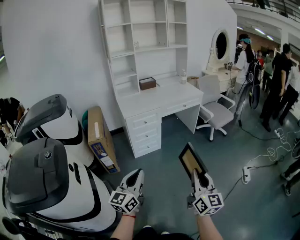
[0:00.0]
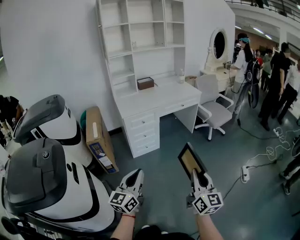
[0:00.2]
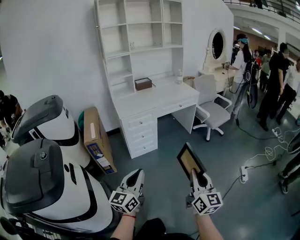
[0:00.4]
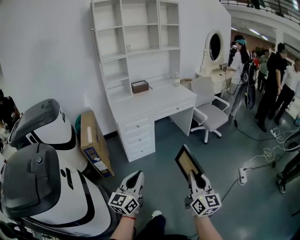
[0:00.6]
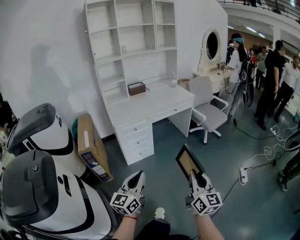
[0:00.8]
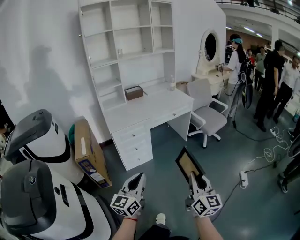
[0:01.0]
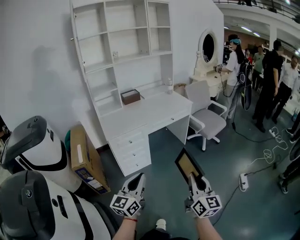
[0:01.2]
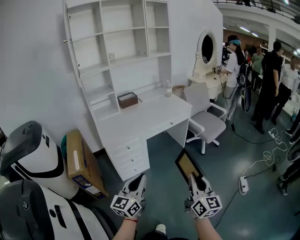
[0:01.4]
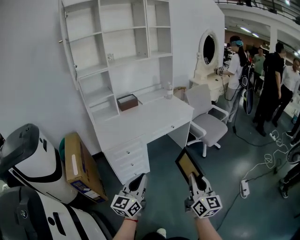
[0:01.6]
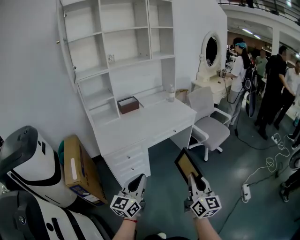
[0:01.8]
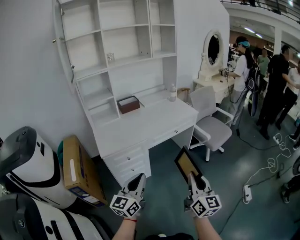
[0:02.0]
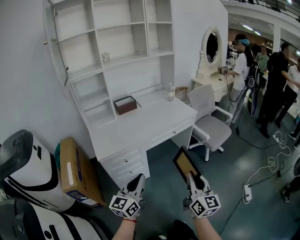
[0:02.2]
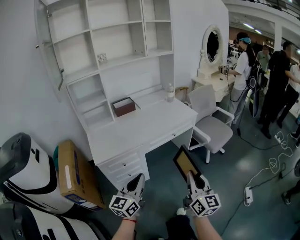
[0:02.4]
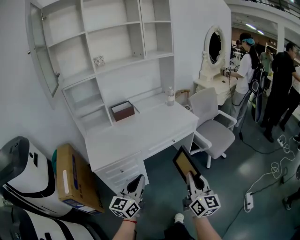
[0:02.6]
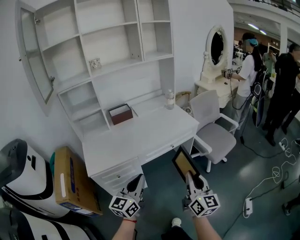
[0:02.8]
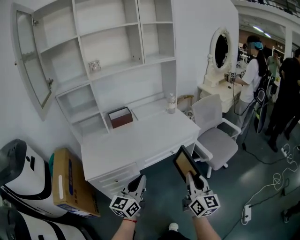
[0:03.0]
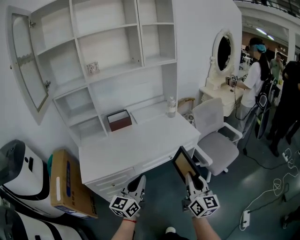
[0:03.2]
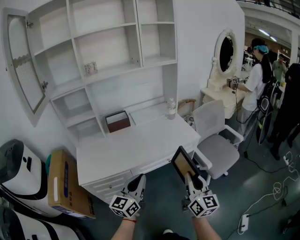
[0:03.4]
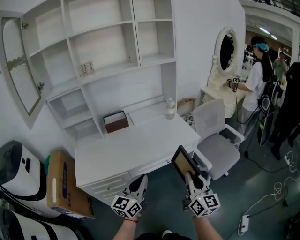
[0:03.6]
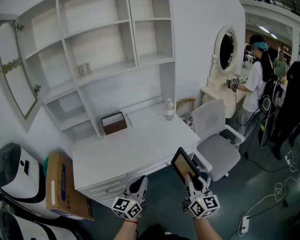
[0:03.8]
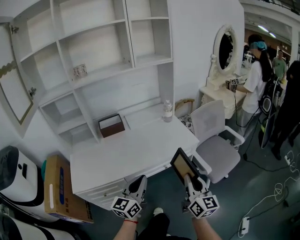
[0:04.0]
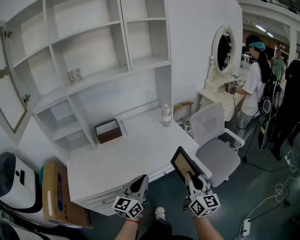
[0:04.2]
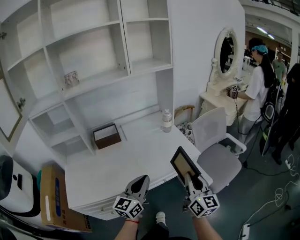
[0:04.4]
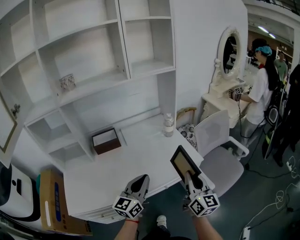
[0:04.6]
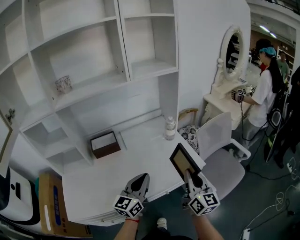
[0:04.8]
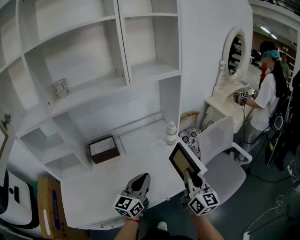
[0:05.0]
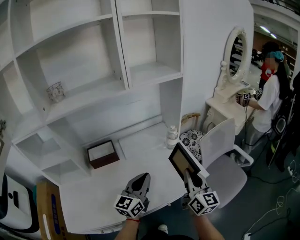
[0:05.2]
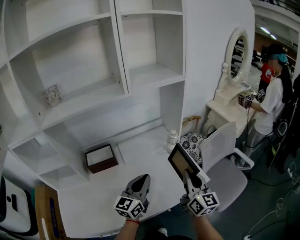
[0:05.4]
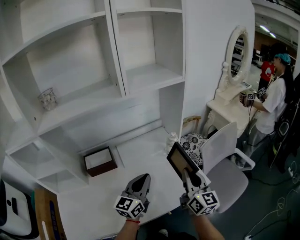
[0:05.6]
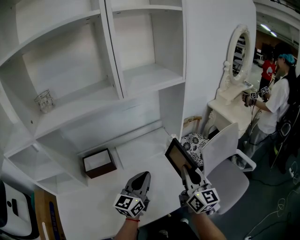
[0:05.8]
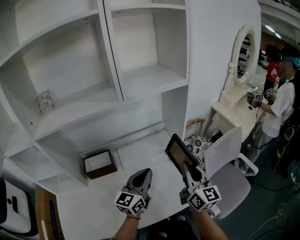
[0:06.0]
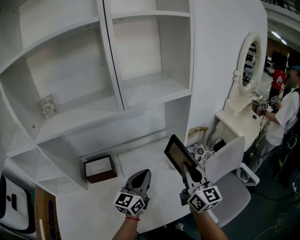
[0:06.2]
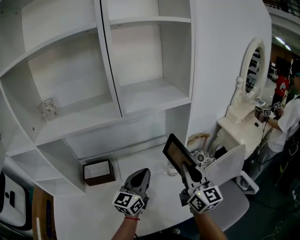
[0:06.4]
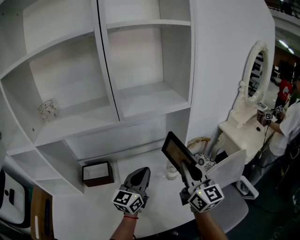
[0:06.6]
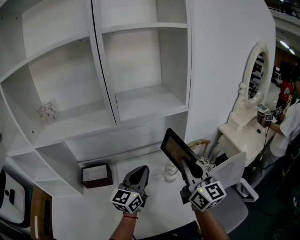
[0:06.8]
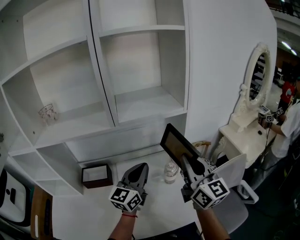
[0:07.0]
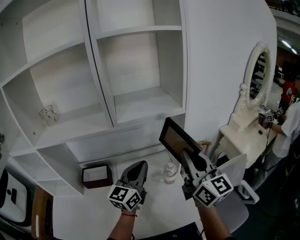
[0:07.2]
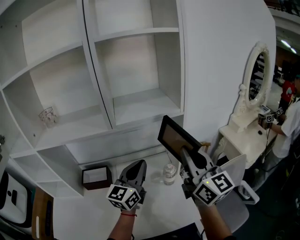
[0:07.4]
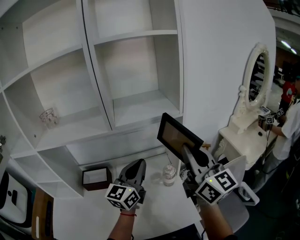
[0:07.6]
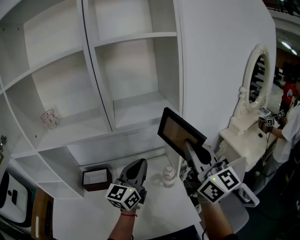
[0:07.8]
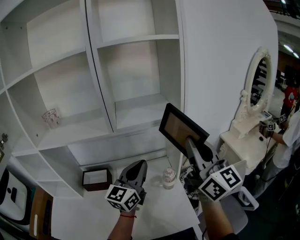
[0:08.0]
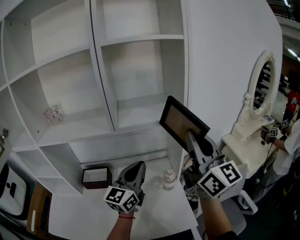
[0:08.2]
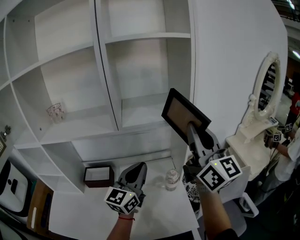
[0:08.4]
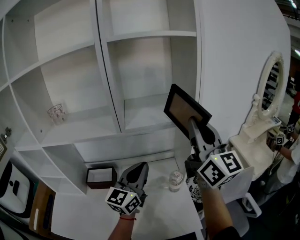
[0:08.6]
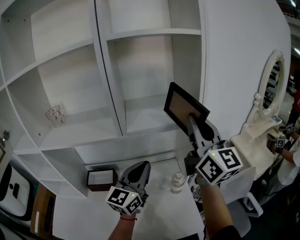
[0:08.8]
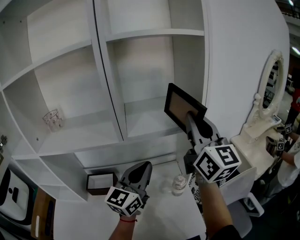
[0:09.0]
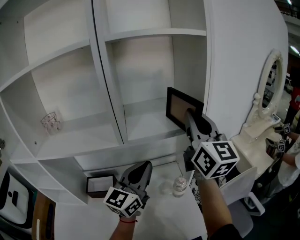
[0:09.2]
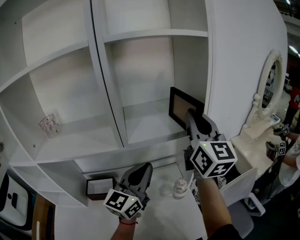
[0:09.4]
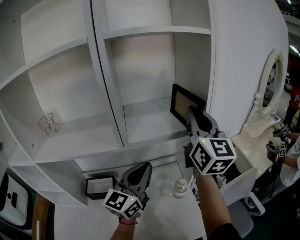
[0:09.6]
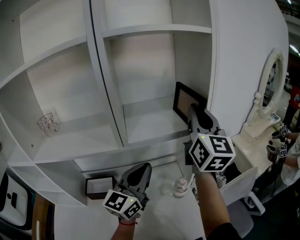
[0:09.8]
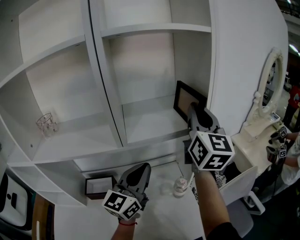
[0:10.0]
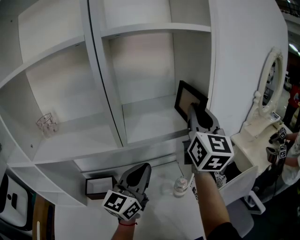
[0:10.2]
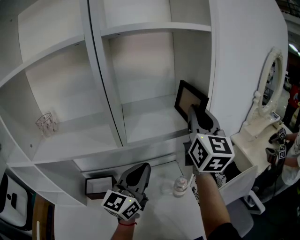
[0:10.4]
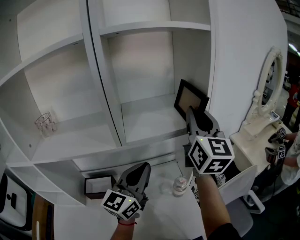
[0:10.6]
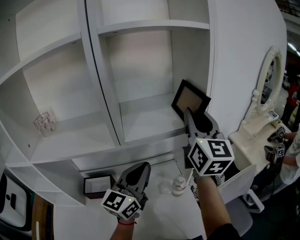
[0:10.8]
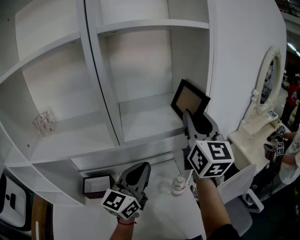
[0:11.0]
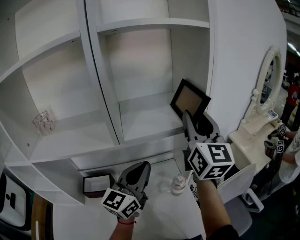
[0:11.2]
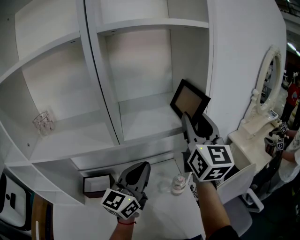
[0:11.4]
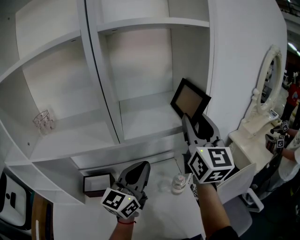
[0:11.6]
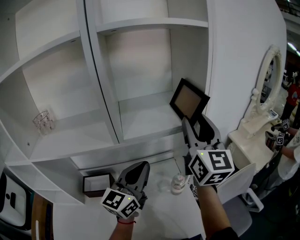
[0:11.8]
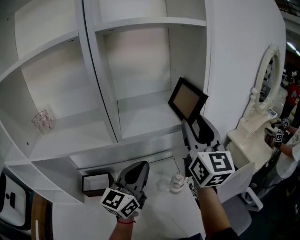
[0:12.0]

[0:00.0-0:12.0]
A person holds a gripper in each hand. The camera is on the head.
0:00.0 to 0:01.6: Both grippers move forward, roughly 30 cm.
0:01.6 to 0:03.0: Both grippers move forward, some 30 cm.
0:03.0 to 0:04.4: Both grippers travel together forward, roughly 25 cm.
0:04.4 to 0:06.0: Both grippers travel together forward, some 30 cm.
0:06.0 to 0:07.6: The right gripper travels upward and forward by some 20 cm, and rotates roughly 20 degrees, while the left gripper moves upward, forward and to the right, approximately 15 cm.
0:07.6 to 0:09.0: The right gripper shifts some 15 cm forward and upward.
0:09.0 to 0:10.4: The right gripper is displaced forward by some 5 cm.
0:10.4 to 0:12.0: The right gripper changes place by about 5 cm, and opens.

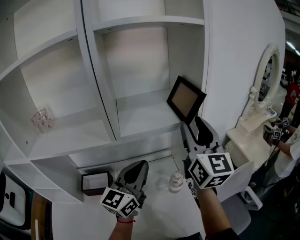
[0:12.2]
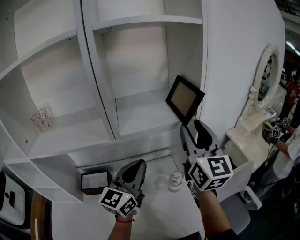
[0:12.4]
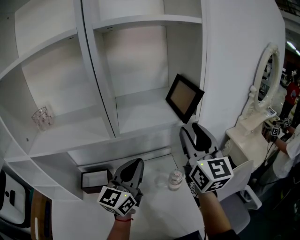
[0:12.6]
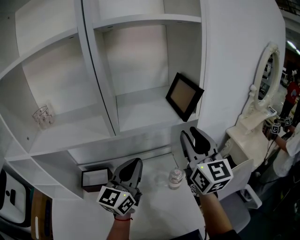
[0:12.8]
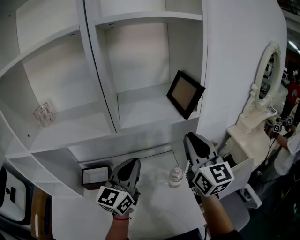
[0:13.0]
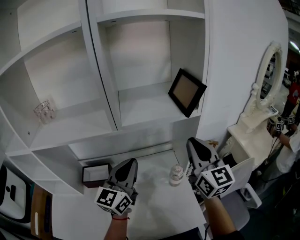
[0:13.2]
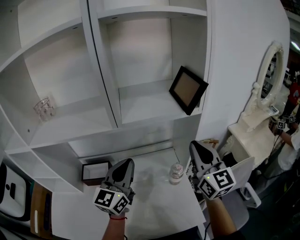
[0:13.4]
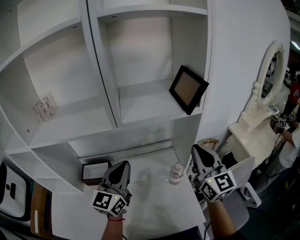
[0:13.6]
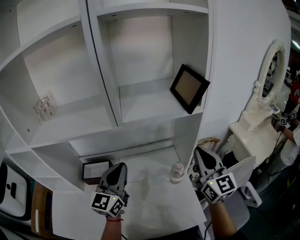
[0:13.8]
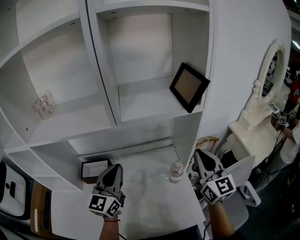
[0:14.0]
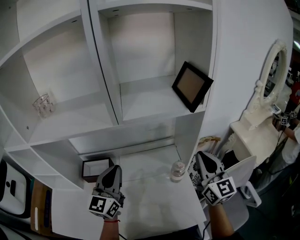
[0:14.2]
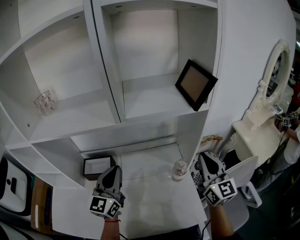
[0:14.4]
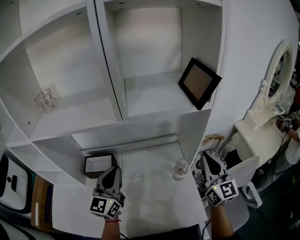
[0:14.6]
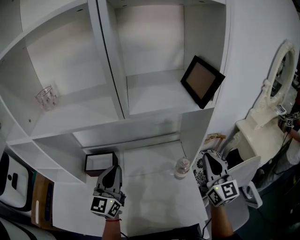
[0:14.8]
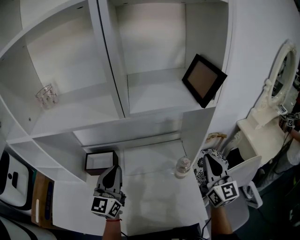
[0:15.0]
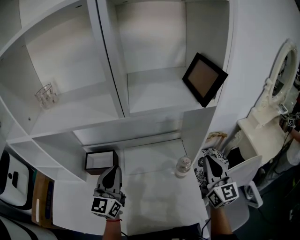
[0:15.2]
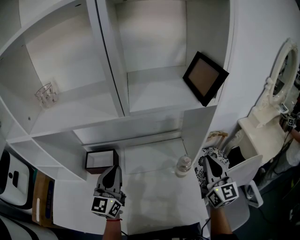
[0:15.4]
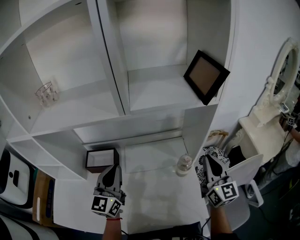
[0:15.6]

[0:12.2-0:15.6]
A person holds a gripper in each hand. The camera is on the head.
0:12.2 to 0:13.8: The left gripper heads to the left and downward, covering roughly 10 cm. Meanwhile the right gripper is displaced downward by roughly 15 cm, and closes.
0:13.8 to 0:15.6: The left gripper heads to the left, covering some 5 cm. Meanwhile the right gripper goes approximately 10 cm downward.

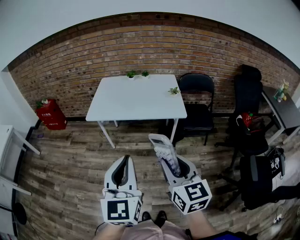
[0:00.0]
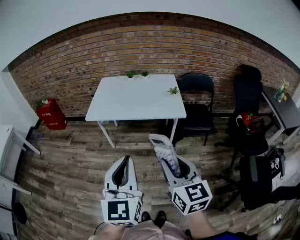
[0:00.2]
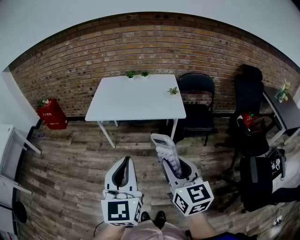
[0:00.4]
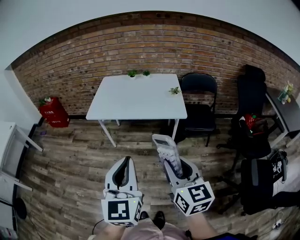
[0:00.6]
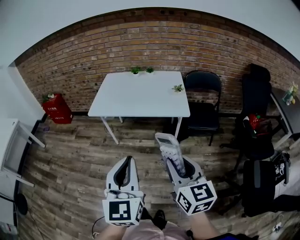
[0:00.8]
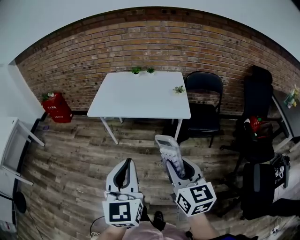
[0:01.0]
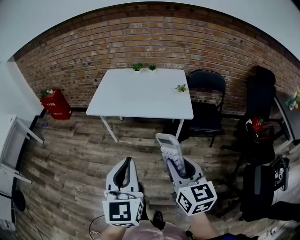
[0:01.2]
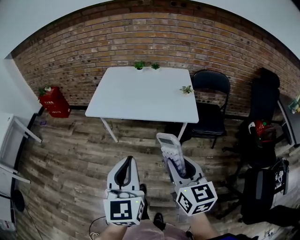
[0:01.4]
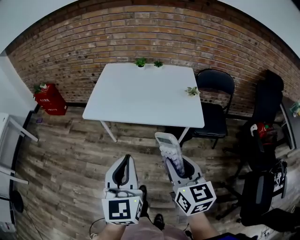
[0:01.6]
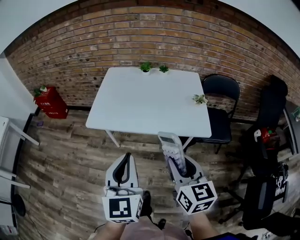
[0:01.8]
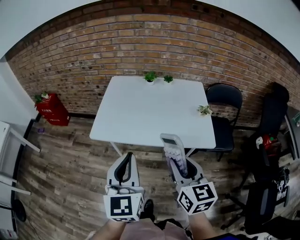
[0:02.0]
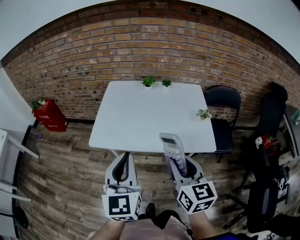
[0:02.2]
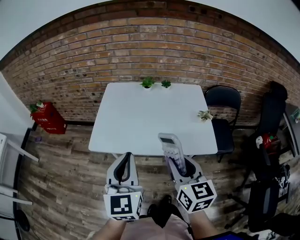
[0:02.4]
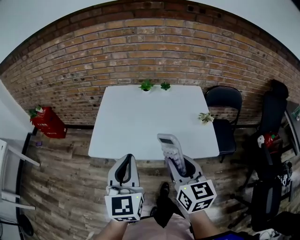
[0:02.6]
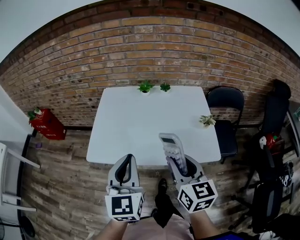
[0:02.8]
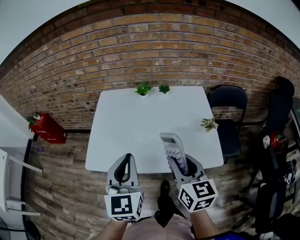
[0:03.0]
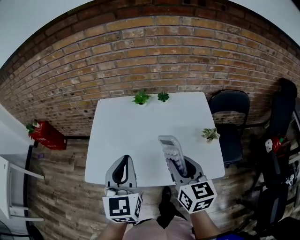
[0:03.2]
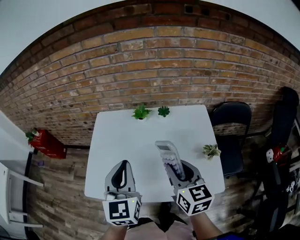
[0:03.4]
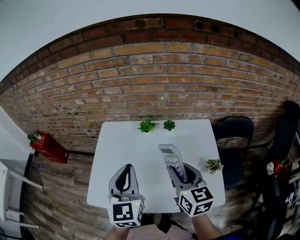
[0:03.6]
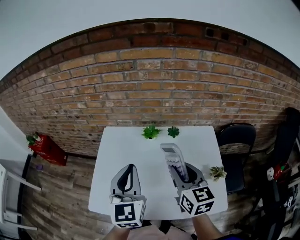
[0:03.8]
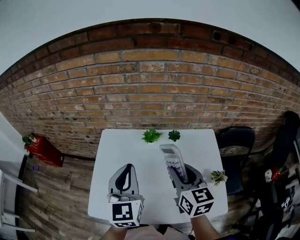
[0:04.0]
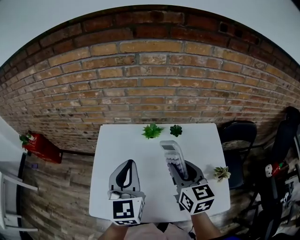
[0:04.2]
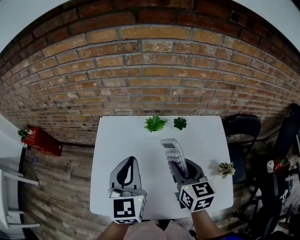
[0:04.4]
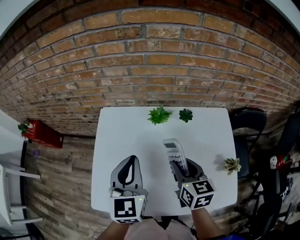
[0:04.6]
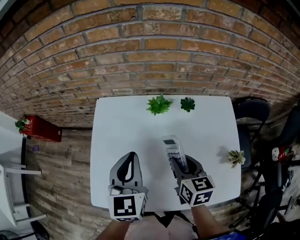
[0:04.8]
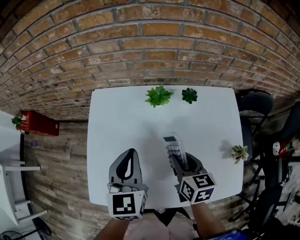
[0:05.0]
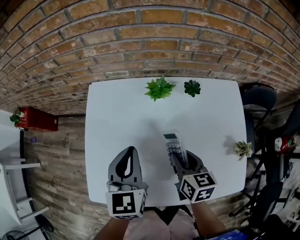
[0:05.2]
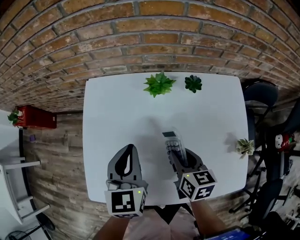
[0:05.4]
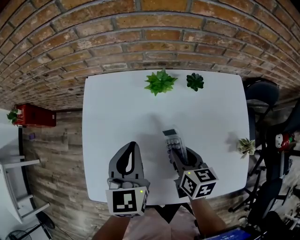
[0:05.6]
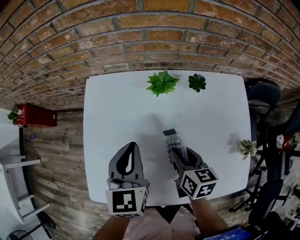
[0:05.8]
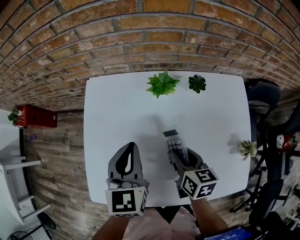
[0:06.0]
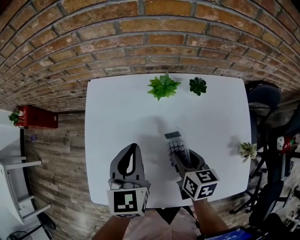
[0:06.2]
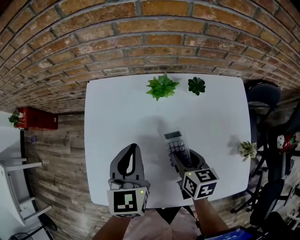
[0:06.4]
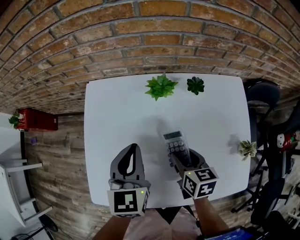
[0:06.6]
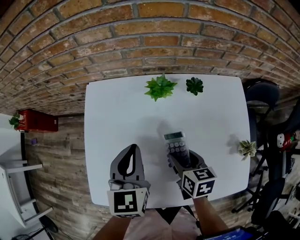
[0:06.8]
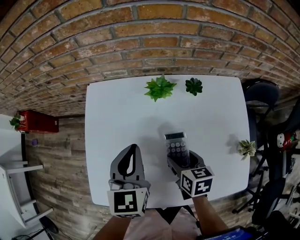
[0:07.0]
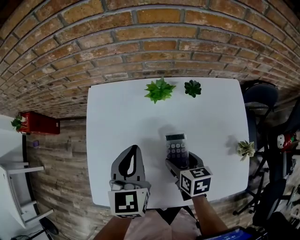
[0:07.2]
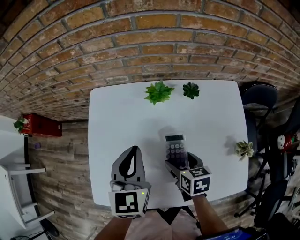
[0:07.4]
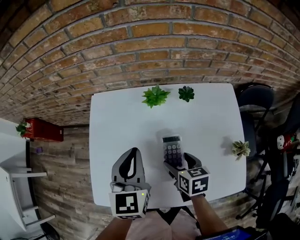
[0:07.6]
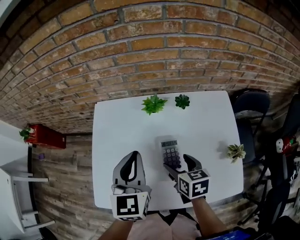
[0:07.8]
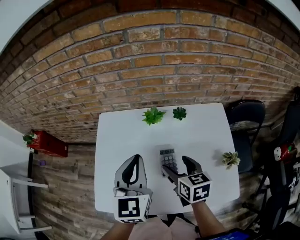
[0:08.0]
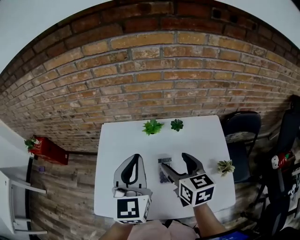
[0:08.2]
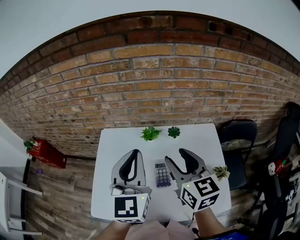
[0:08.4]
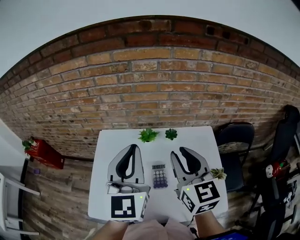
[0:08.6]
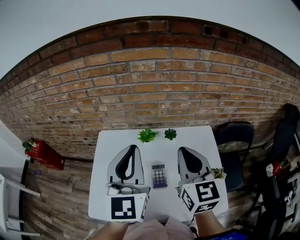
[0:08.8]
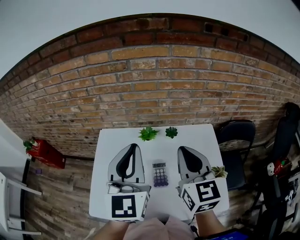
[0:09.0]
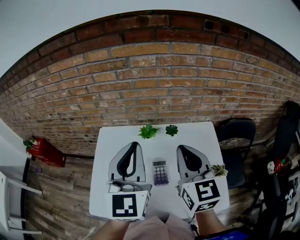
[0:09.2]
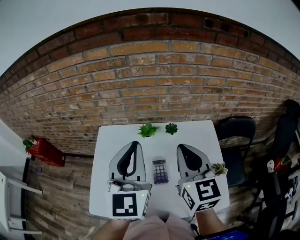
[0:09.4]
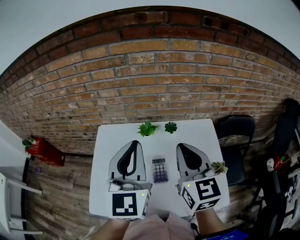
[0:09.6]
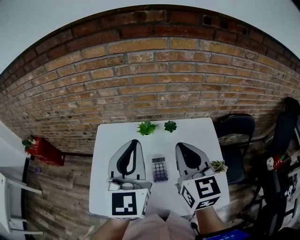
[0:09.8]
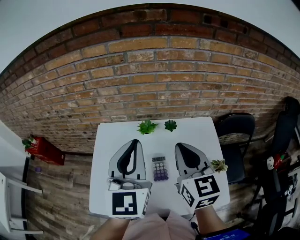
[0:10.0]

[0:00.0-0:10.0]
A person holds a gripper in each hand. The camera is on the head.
0:00.0 to 0:01.4: Both grippers move forward and downward, some 10 cm.
0:01.4 to 0:02.8: The grippers both shift forward by approximately 30 cm.
0:02.8 to 0:04.2: Both grippers move forward, approximately 30 cm.
0:04.2 to 0:05.8: The grippers both shift downward by some 20 cm. The right gripper swivels approximately 30 degrees.
0:05.8 to 0:07.2: The right gripper opens up.
0:07.2 to 0:08.6: Both grippers travel together upward, about 30 cm. The left gripper rotates about 30 degrees; the right gripper tilts its fingers some 40 degrees upward, and closes its fingers.
0:08.6 to 0:10.0: The grippers move only a little.
